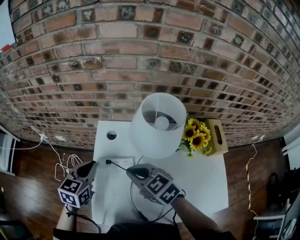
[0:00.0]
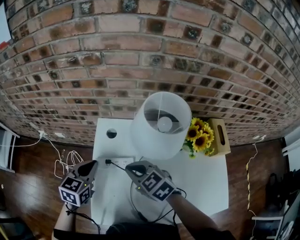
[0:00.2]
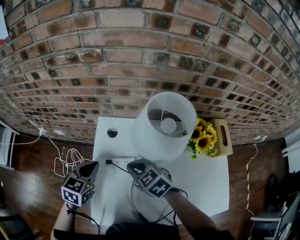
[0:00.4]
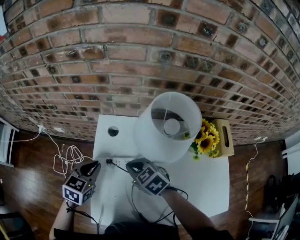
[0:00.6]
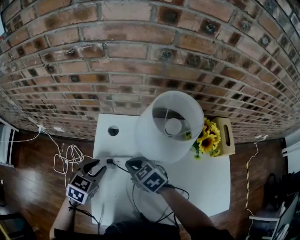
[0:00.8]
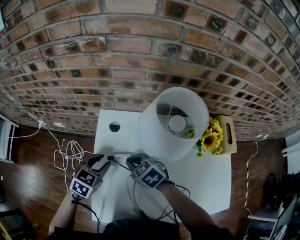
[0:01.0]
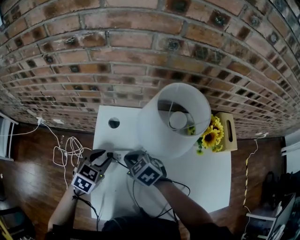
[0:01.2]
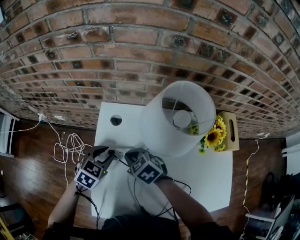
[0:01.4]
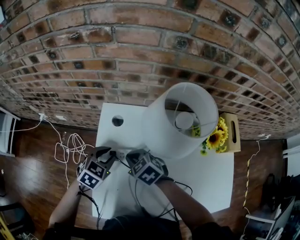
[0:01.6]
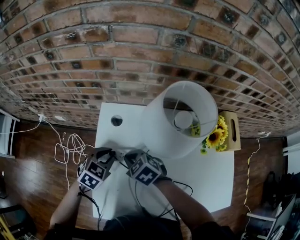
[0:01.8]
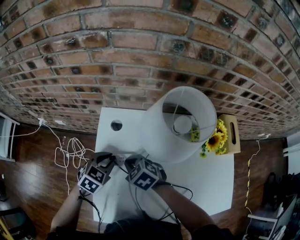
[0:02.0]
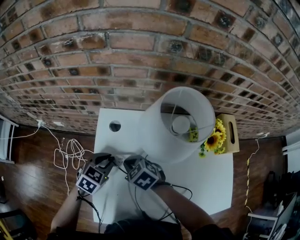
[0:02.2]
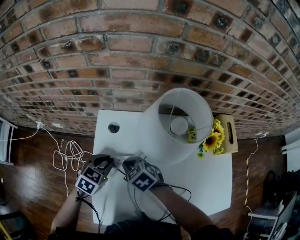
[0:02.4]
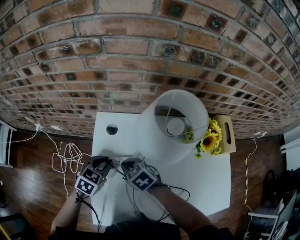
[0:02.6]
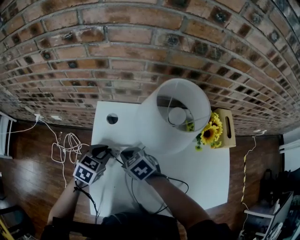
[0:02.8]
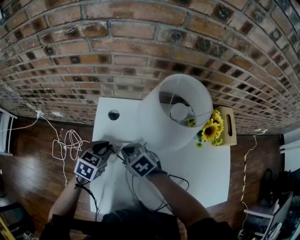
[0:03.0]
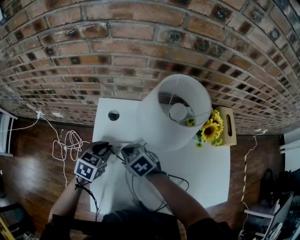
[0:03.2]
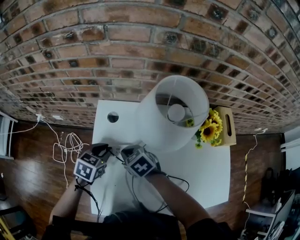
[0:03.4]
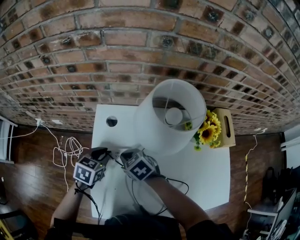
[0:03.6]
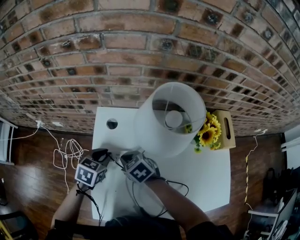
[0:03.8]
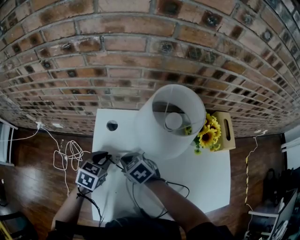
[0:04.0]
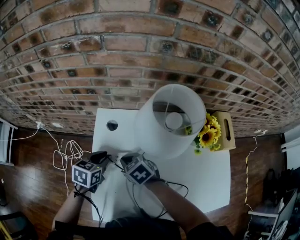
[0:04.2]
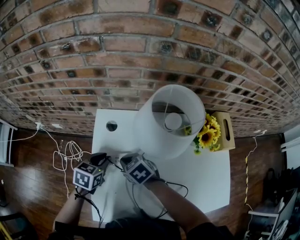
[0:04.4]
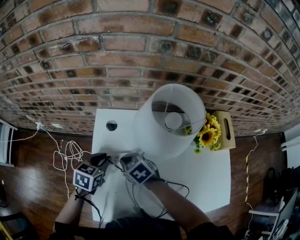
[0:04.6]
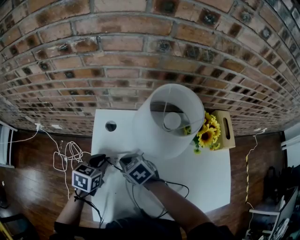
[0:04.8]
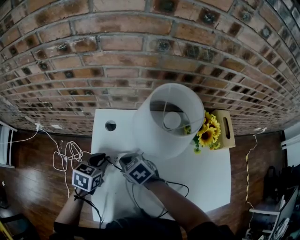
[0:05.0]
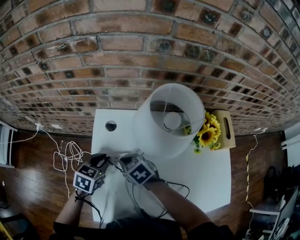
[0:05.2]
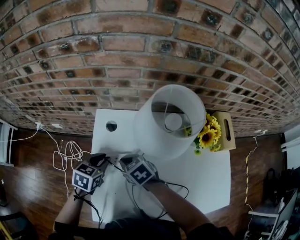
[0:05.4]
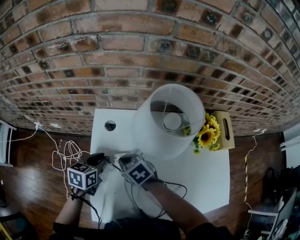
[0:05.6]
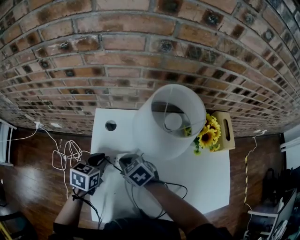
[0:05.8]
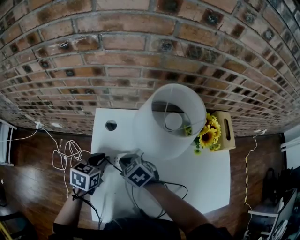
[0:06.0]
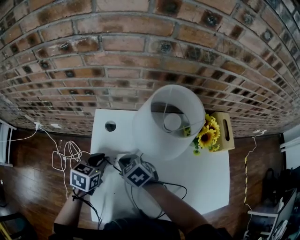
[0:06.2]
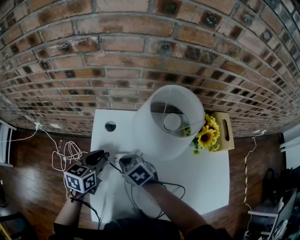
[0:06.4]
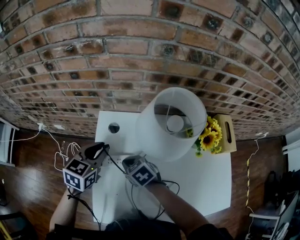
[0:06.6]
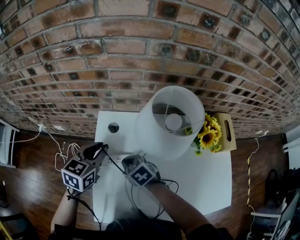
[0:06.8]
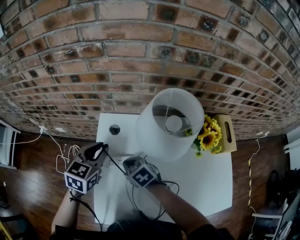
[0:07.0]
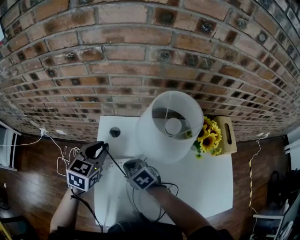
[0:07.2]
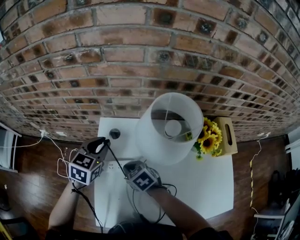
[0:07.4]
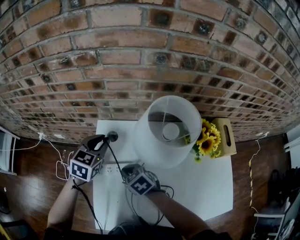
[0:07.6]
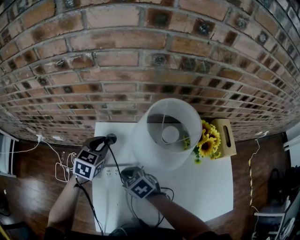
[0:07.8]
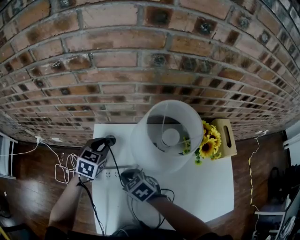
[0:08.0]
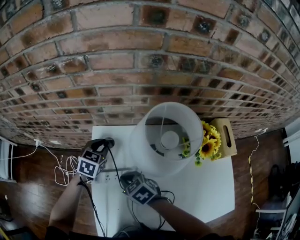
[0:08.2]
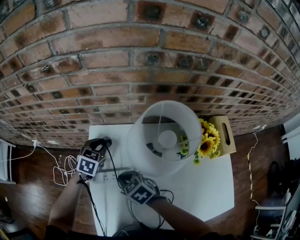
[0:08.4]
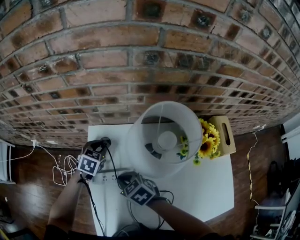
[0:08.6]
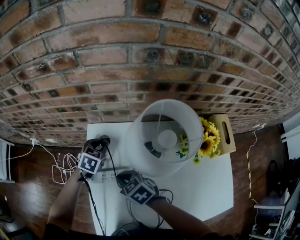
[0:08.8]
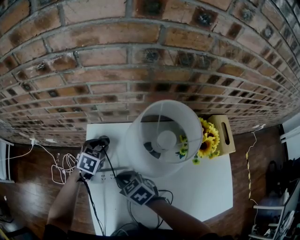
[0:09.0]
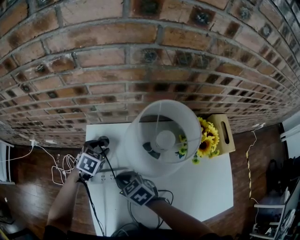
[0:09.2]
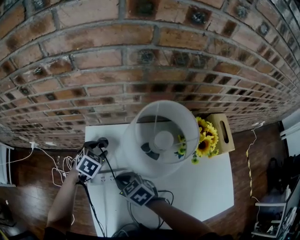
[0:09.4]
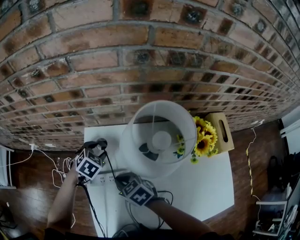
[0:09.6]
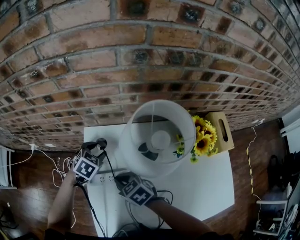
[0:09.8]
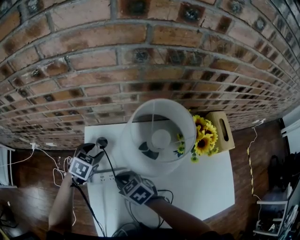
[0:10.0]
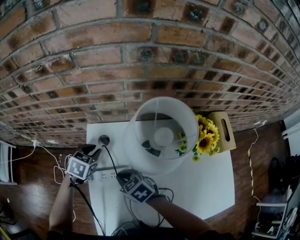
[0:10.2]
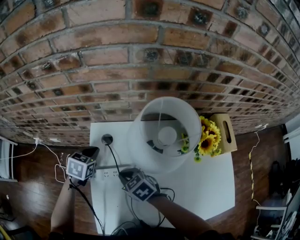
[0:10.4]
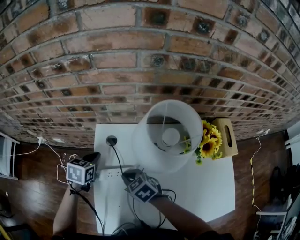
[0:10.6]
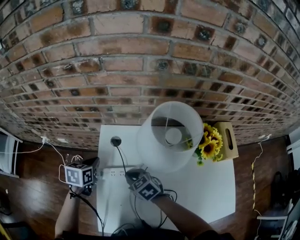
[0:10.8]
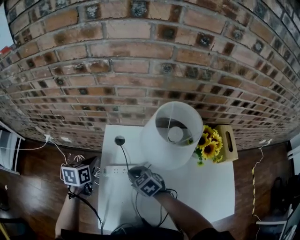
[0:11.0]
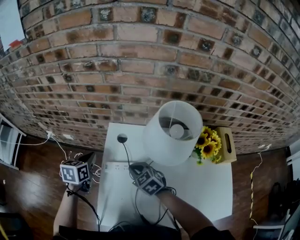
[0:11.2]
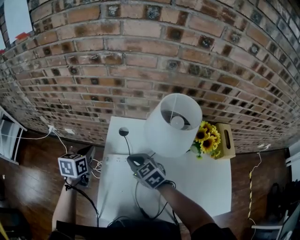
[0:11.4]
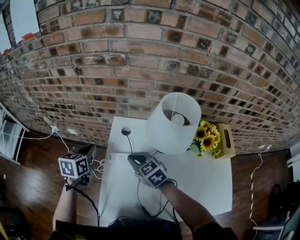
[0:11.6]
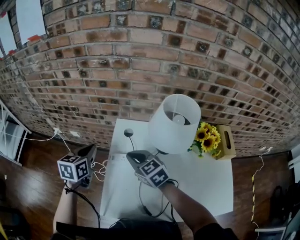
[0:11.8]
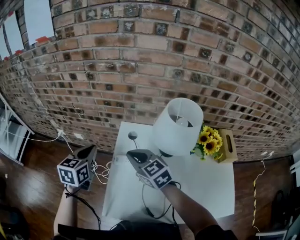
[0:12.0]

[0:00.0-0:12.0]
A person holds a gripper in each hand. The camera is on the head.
0:00.0 to 0:01.6: The two grippers go approximately 15 cm downward. The left gripper turns by about 30 degrees, and opens its fingers.
0:01.6 to 0:03.0: The grippers make only small movements.
0:03.0 to 0:06.0: There are only small adjustments of the grippers.
0:06.0 to 0:07.6: The left gripper travels forward and upward by approximately 15 cm, and swivels approximately 20 degrees.
0:07.6 to 0:09.0: The left gripper is displaced downward by about 10 cm.
0:09.0 to 0:10.4: The left gripper goes roughly 5 cm to the left, and closes up.
0:10.4 to 0:12.0: The right gripper goes about 15 cm upward, and rotates some 30 degrees. Meanwhile the left gripper shifts about 25 cm upward, to the left and backward, and changes its angle by some 30 degrees.

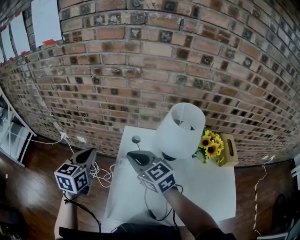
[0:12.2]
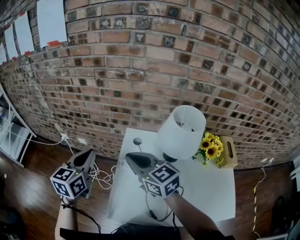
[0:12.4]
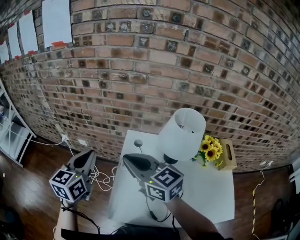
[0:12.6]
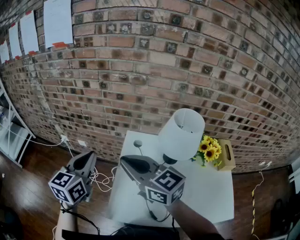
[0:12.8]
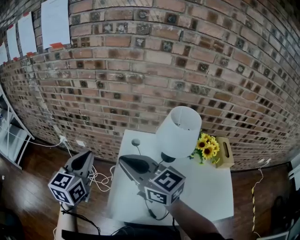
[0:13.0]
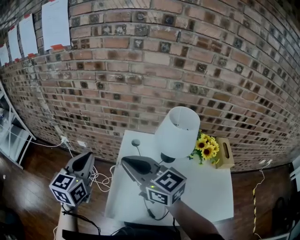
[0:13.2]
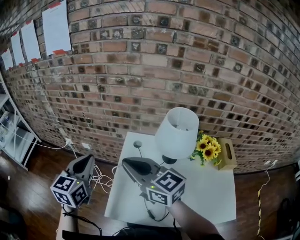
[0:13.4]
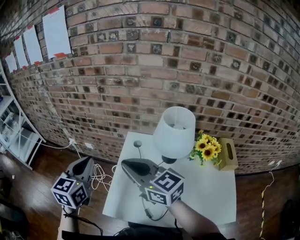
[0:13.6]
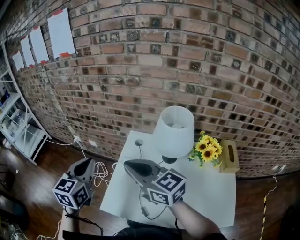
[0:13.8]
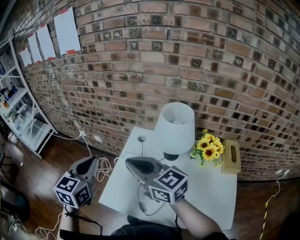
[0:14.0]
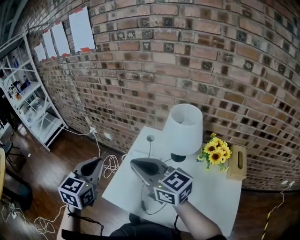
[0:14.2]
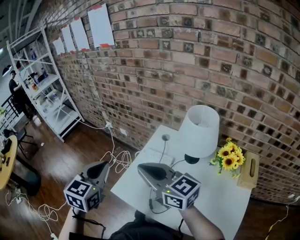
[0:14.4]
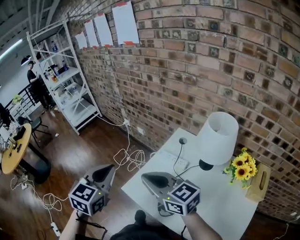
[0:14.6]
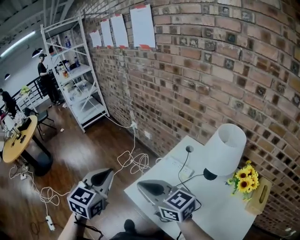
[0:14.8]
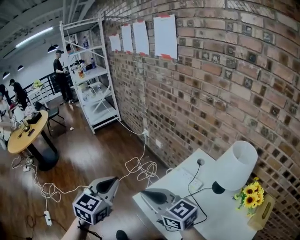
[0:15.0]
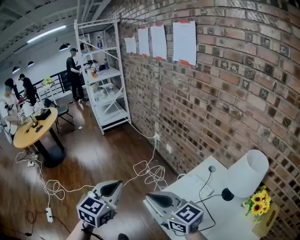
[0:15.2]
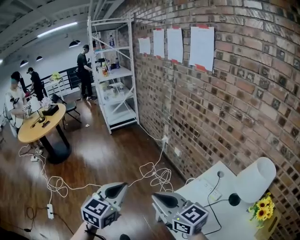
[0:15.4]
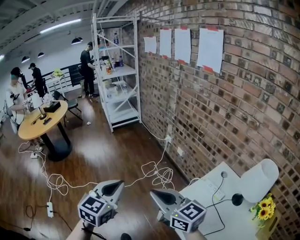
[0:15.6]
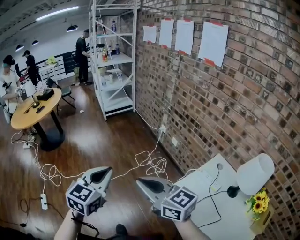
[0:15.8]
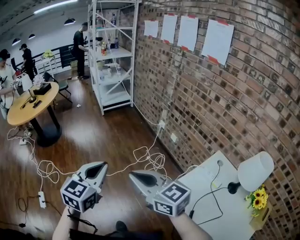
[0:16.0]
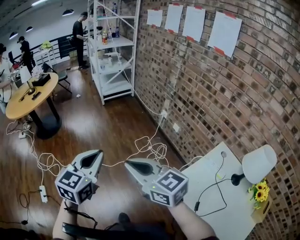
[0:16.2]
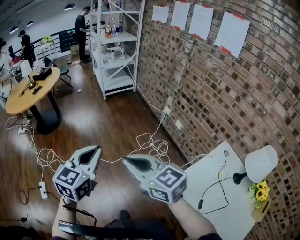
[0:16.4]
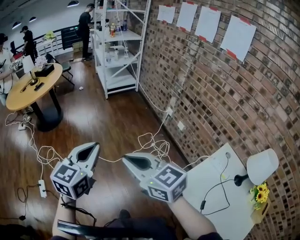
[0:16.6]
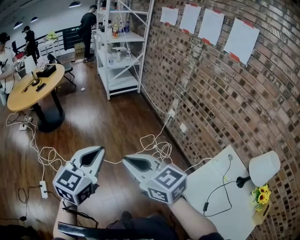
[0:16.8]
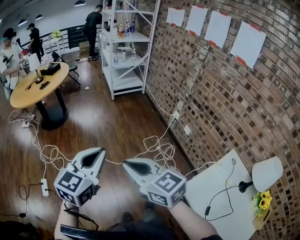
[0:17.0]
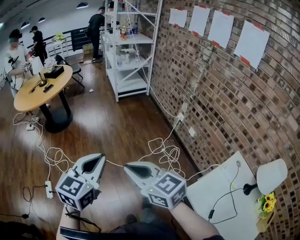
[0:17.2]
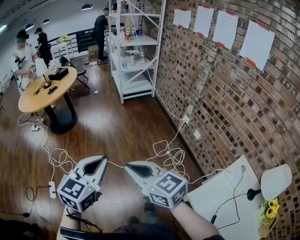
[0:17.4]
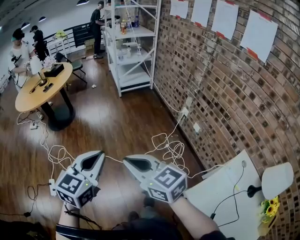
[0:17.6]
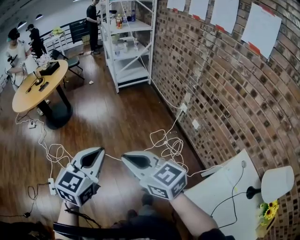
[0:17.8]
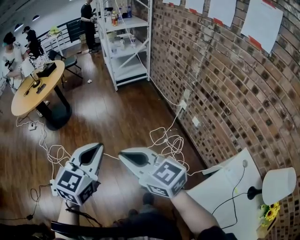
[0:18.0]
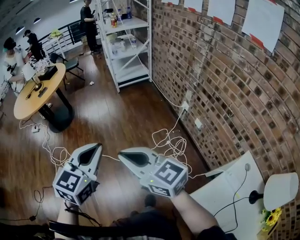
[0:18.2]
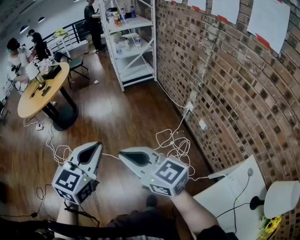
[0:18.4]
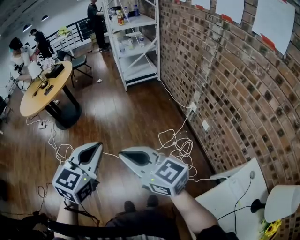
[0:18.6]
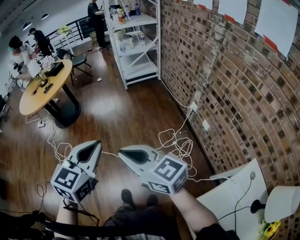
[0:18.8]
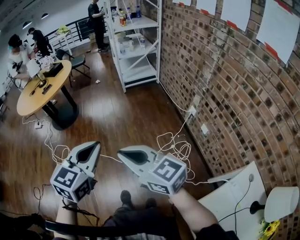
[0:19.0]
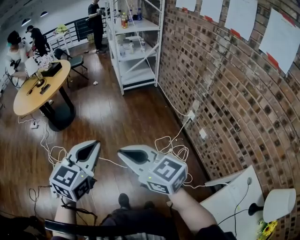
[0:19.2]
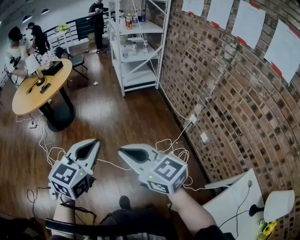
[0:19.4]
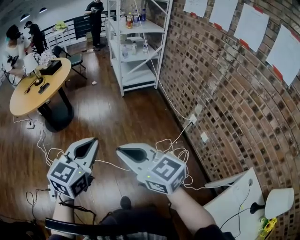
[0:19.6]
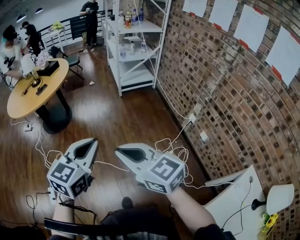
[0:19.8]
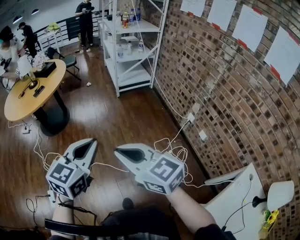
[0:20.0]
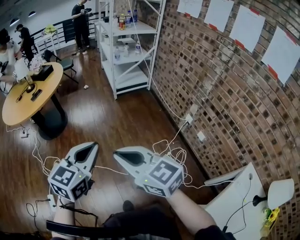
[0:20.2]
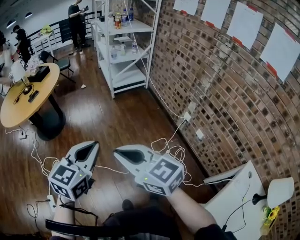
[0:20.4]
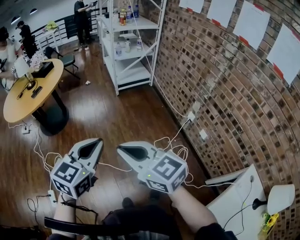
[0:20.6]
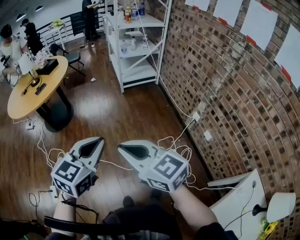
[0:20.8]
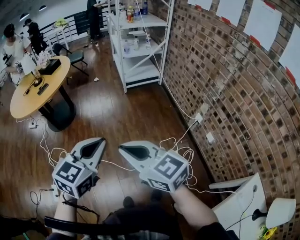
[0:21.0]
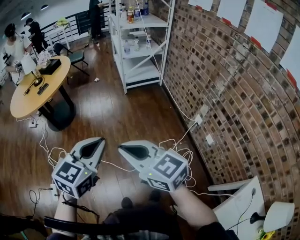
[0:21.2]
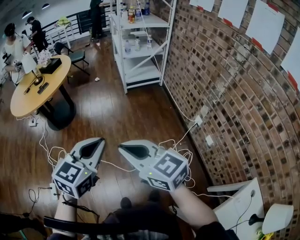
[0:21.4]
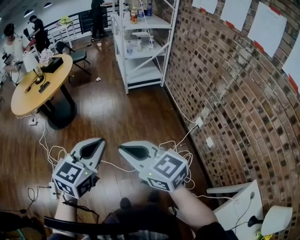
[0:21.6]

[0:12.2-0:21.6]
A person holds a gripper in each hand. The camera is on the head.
0:12.2 to 0:13.8: The grippers both shift backward and upward by about 15 cm. The right gripper swivels roughly 20 degrees.
0:13.8 to 0:15.4: The right gripper shifts by roughly 25 cm, and rotates some 40 degrees, while the left gripper shifts by approximately 30 cm, and changes its angle by about 30 degrees.
0:15.4 to 0:17.0: Both grippers move to the left and forward, roughly 30 cm.
0:17.0 to 0:18.4: The right gripper travels forward and to the right by about 15 cm, while the left gripper is displaced to the right and forward by about 15 cm.
0:18.4 to 0:20.0: The grippers both shift forward and to the left by some 20 cm.
0:20.0 to 0:21.6: The two grippers go approximately 10 cm to the right.

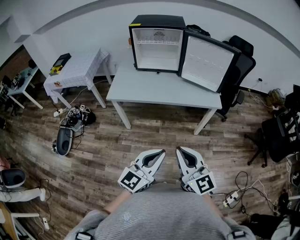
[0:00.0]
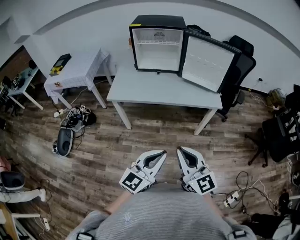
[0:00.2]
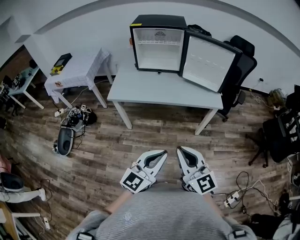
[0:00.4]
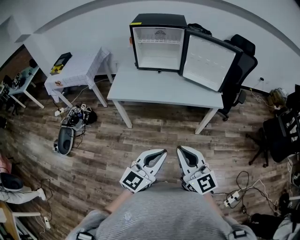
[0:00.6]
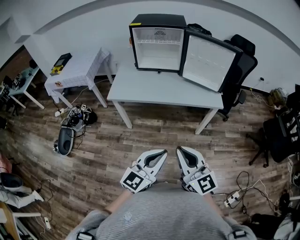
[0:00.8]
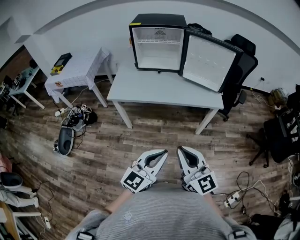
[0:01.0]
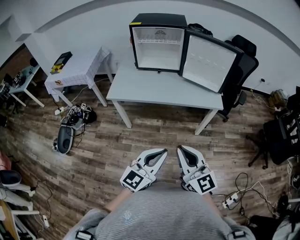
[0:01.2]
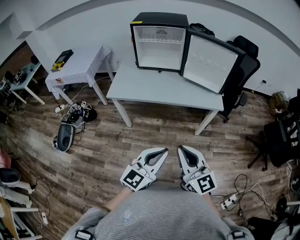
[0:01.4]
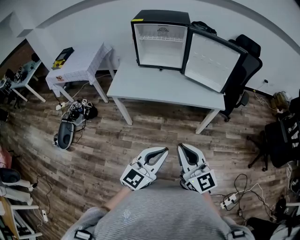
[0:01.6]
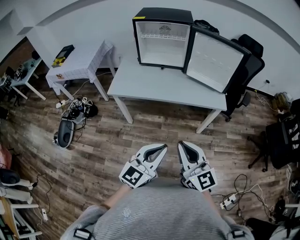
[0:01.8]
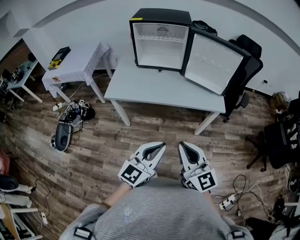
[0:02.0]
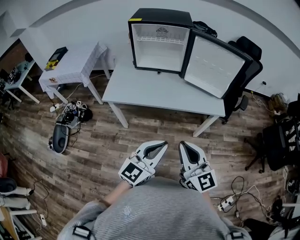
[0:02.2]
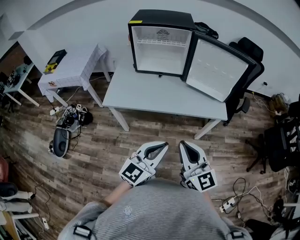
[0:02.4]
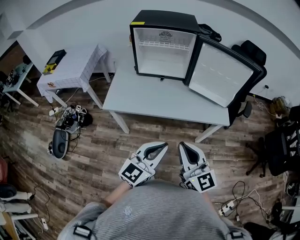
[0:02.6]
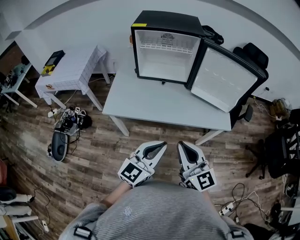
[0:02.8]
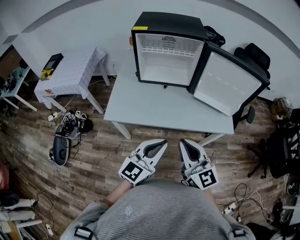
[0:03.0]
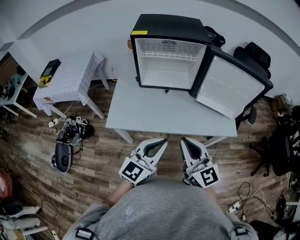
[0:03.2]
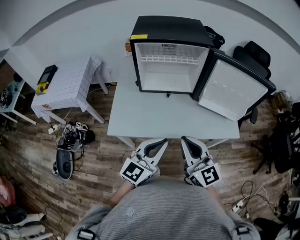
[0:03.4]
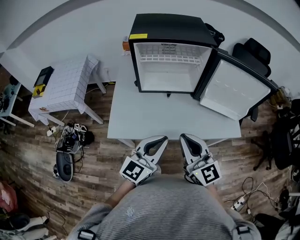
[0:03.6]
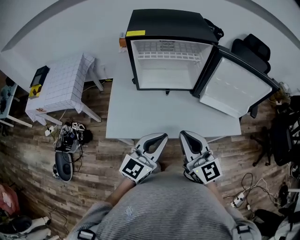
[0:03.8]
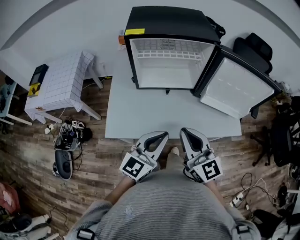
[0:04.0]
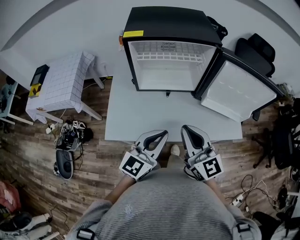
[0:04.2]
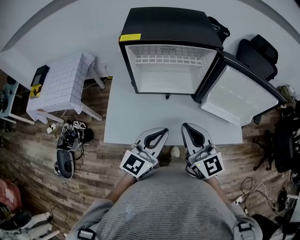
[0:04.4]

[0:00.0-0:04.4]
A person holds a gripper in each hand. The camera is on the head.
0:00.0 to 0:01.4: The grippers move only a little.
0:01.4 to 0:03.0: The grippers both shift forward and to the left by roughly 25 cm.
0:03.0 to 0:04.4: The two grippers go approximately 20 cm forward.
